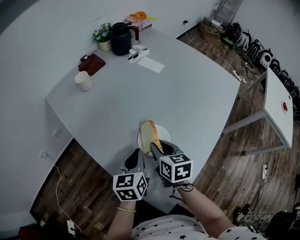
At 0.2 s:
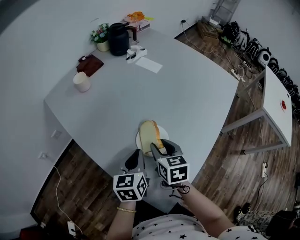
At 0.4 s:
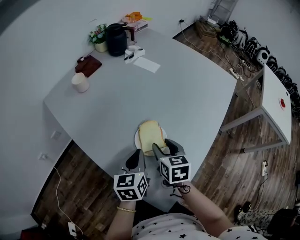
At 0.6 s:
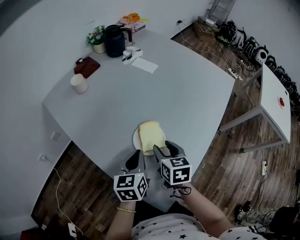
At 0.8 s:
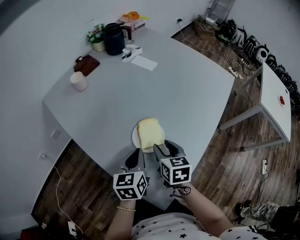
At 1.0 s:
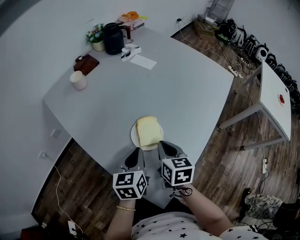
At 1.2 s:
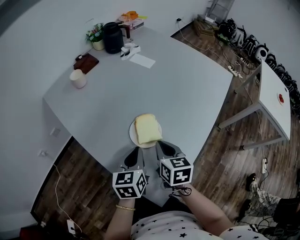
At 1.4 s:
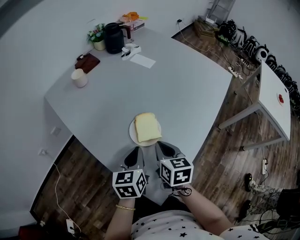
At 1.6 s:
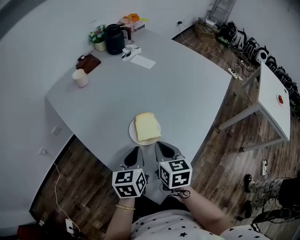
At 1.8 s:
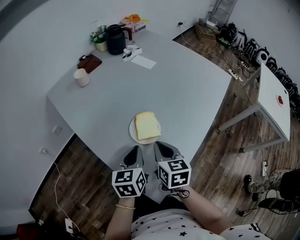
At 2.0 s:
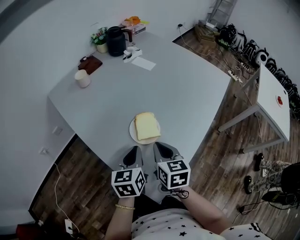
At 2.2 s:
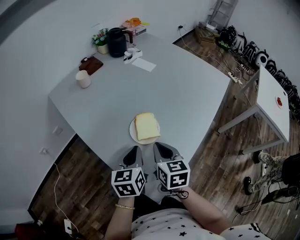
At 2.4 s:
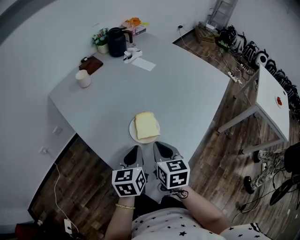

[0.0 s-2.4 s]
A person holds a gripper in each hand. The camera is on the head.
0.0 to 1.2 s: The right gripper ends up some 5 cm from where it was, and closes up; the left gripper shifts by about 5 cm.
1.2 to 2.4 s: The grippers make only small movements.

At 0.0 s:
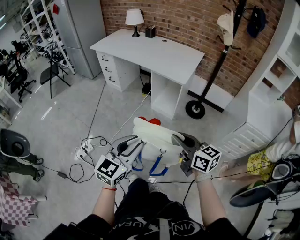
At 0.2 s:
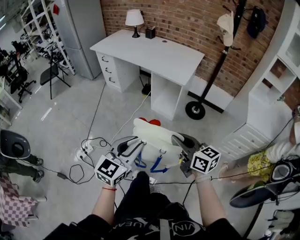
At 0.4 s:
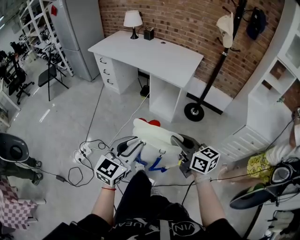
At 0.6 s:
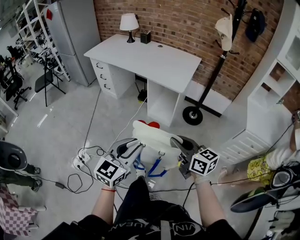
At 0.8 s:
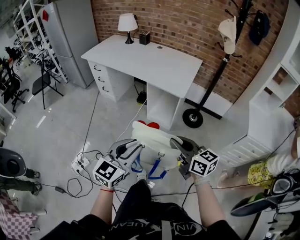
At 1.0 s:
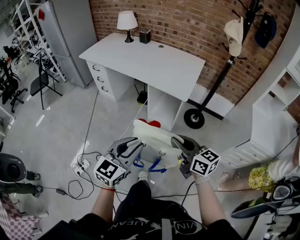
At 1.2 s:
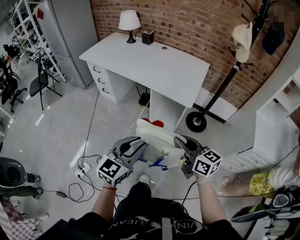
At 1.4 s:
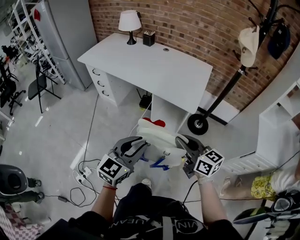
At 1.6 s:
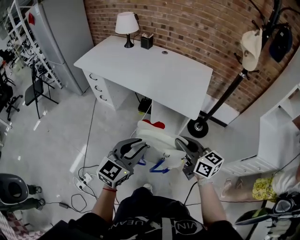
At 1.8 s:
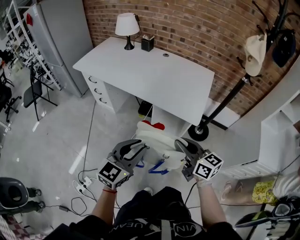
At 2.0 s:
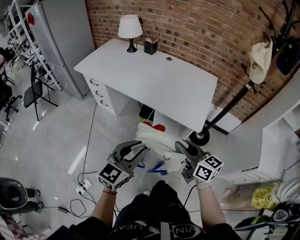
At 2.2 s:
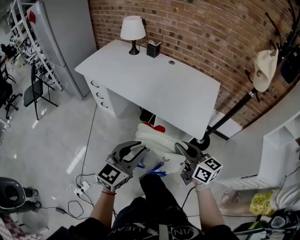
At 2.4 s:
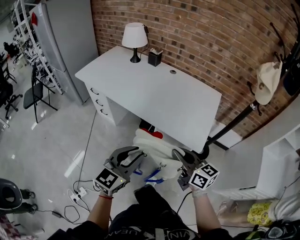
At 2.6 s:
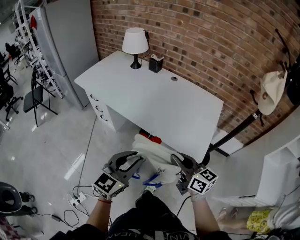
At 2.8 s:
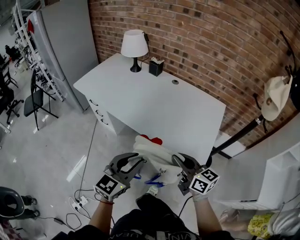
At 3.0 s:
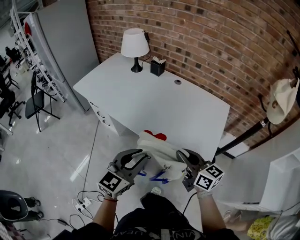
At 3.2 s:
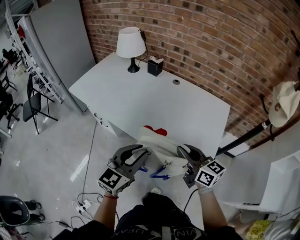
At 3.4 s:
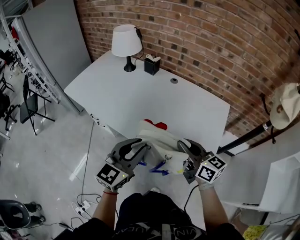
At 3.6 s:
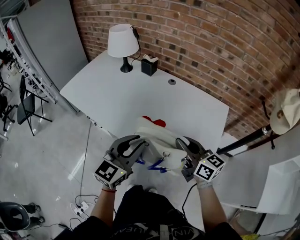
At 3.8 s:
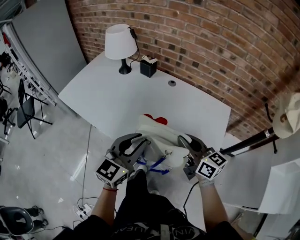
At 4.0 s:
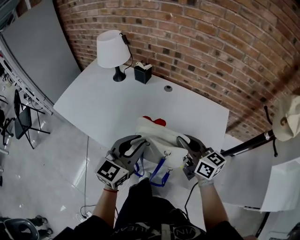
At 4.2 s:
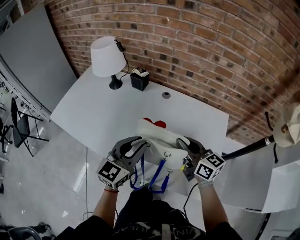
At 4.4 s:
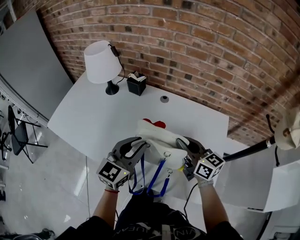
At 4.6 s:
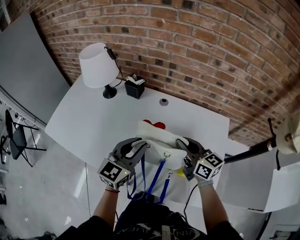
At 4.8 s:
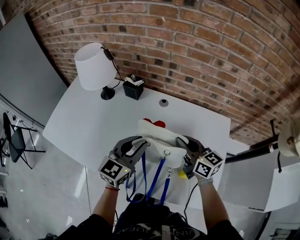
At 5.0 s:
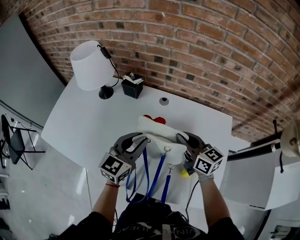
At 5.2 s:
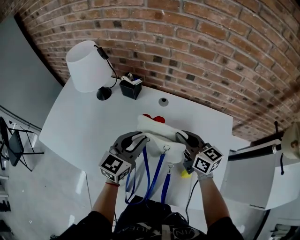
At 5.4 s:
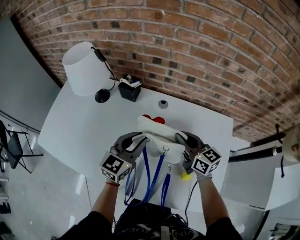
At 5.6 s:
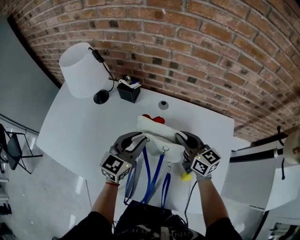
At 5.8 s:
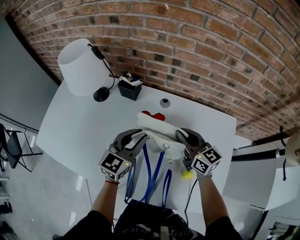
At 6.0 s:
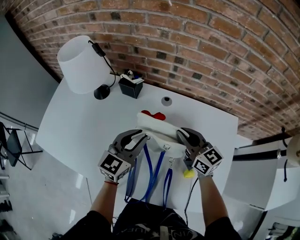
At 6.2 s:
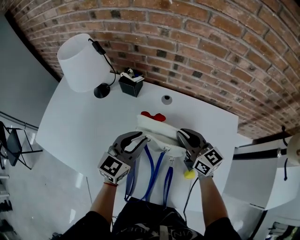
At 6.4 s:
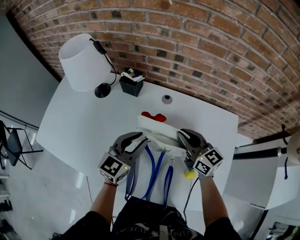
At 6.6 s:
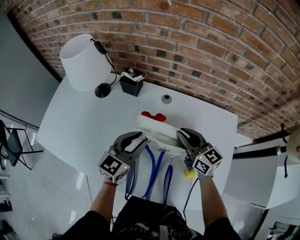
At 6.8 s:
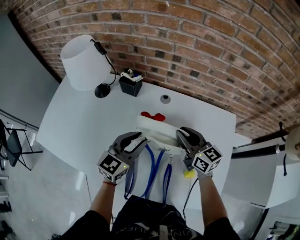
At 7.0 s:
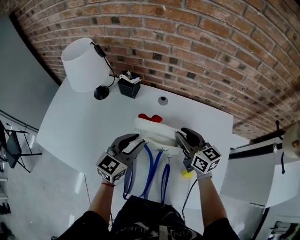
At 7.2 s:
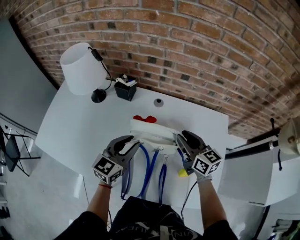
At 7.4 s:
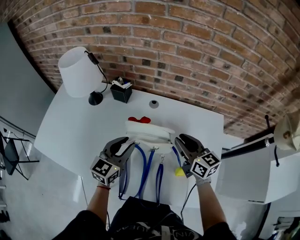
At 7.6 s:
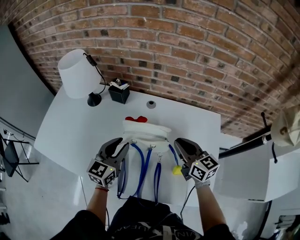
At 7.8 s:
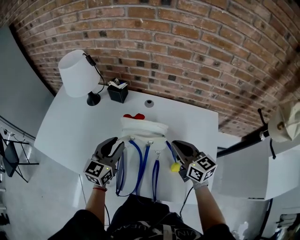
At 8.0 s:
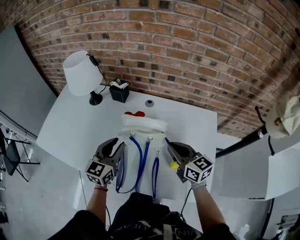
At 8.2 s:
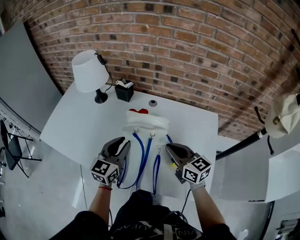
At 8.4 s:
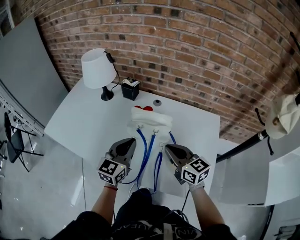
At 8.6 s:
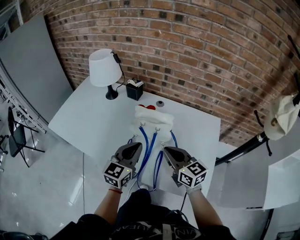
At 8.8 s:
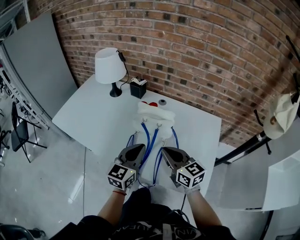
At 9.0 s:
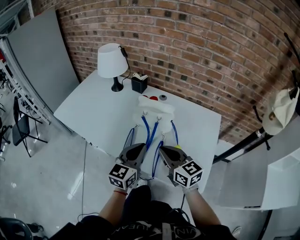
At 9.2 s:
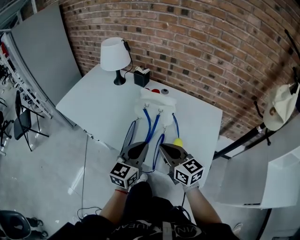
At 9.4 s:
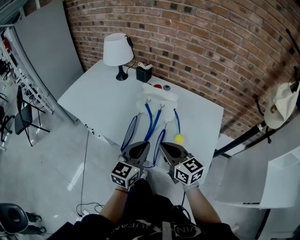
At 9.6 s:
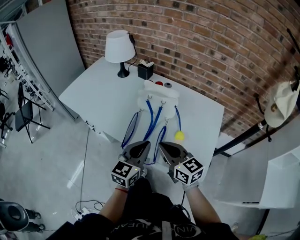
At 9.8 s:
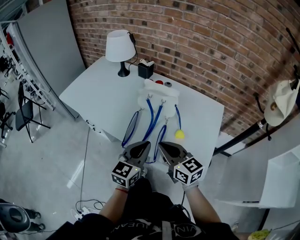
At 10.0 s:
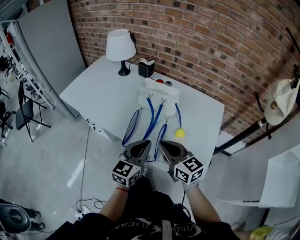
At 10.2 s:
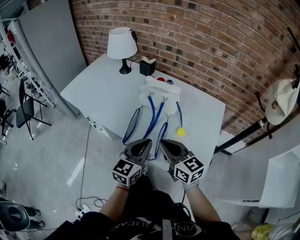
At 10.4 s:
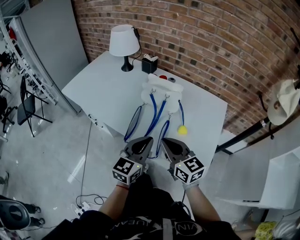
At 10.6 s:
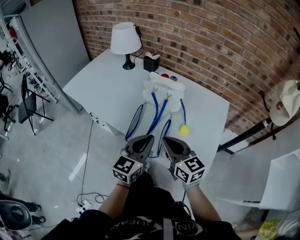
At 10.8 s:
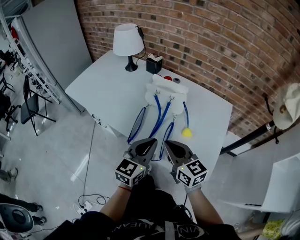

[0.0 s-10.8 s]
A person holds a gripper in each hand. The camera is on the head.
0.0 to 1.6 s: The two grippers go some 35 cm forward.
1.6 to 3.0 s: The two grippers go approximately 25 cm forward.
3.0 to 4.6 s: Both grippers travel together forward, some 35 cm.
4.6 to 6.2 s: The grippers both shift forward and downward by some 10 cm.
6.2 to 7.8 s: The right gripper goes roughly 10 cm backward and to the right. Meanwhile the left gripper heads backward, covering some 5 cm.
7.8 to 9.2 s: The left gripper travels backward by about 25 cm, and closes up. Meanwhile the right gripper moves backward and to the left, some 20 cm.
9.2 to 10.8 s: The grippers make only small movements.

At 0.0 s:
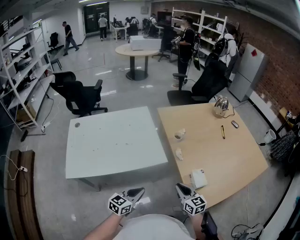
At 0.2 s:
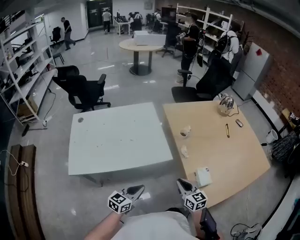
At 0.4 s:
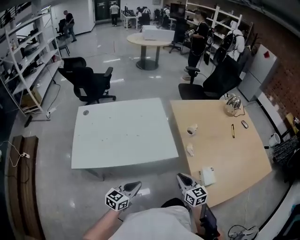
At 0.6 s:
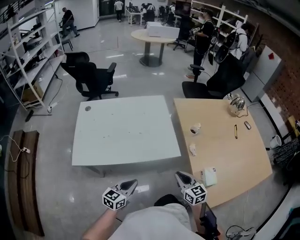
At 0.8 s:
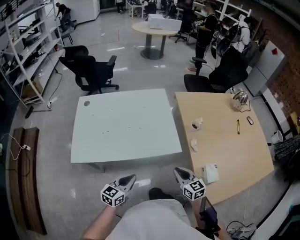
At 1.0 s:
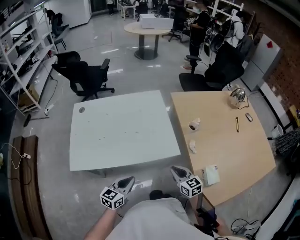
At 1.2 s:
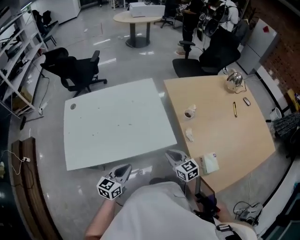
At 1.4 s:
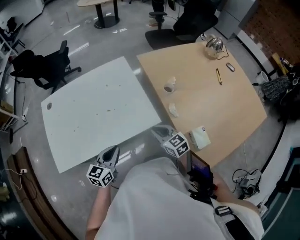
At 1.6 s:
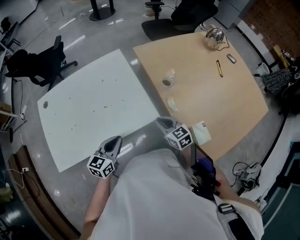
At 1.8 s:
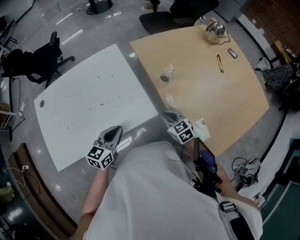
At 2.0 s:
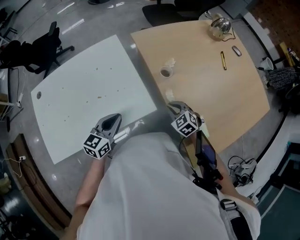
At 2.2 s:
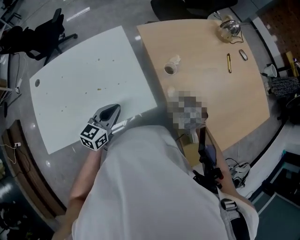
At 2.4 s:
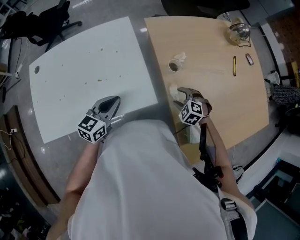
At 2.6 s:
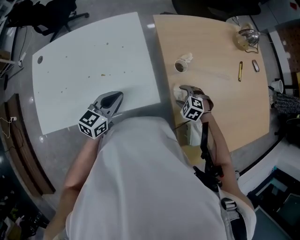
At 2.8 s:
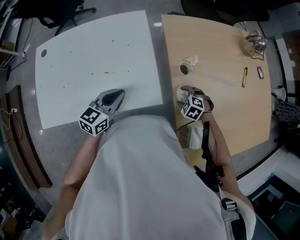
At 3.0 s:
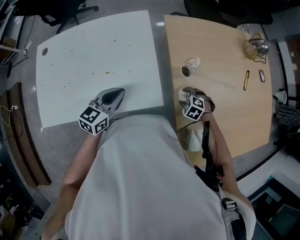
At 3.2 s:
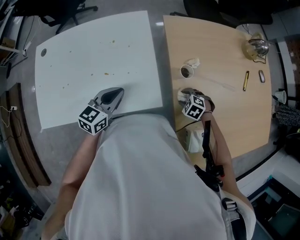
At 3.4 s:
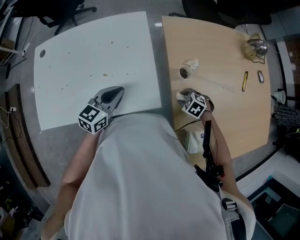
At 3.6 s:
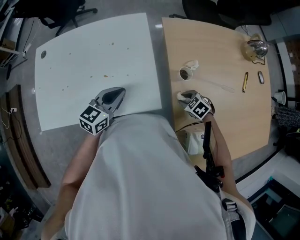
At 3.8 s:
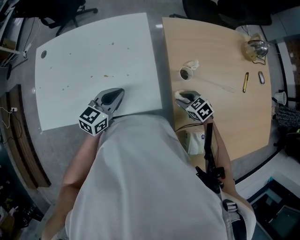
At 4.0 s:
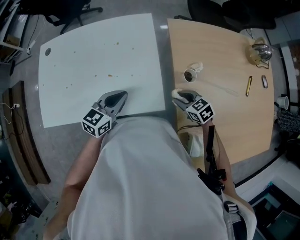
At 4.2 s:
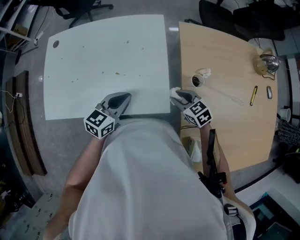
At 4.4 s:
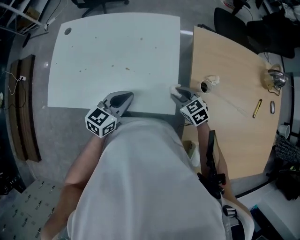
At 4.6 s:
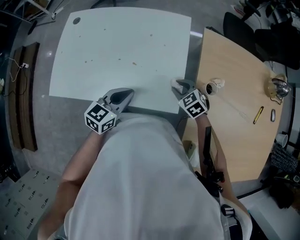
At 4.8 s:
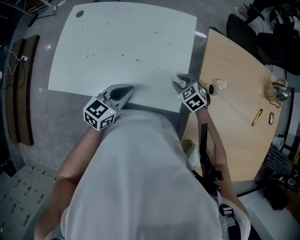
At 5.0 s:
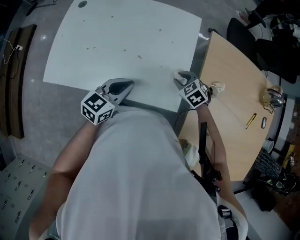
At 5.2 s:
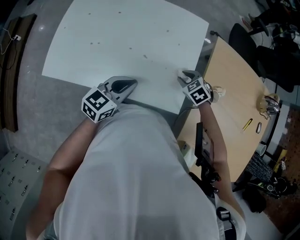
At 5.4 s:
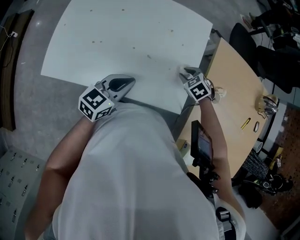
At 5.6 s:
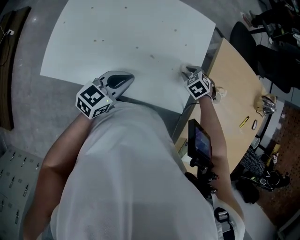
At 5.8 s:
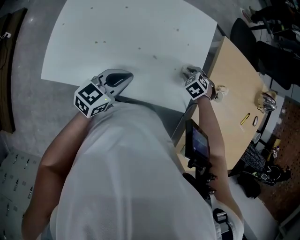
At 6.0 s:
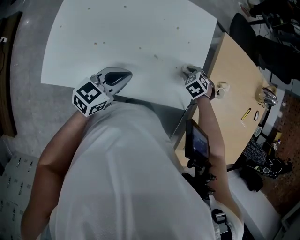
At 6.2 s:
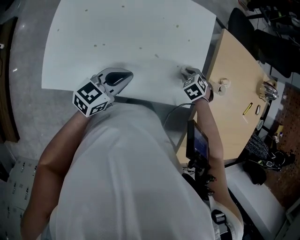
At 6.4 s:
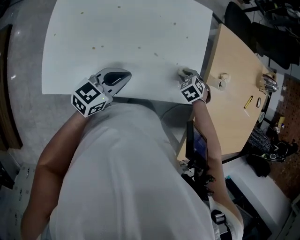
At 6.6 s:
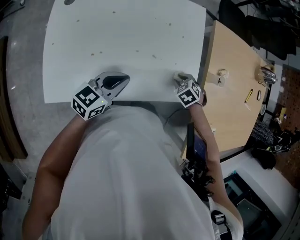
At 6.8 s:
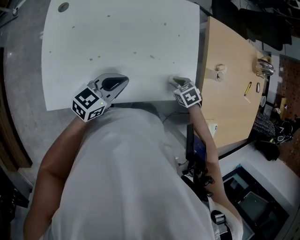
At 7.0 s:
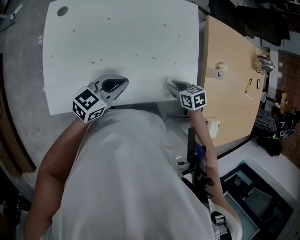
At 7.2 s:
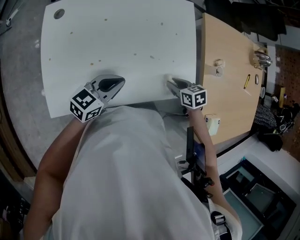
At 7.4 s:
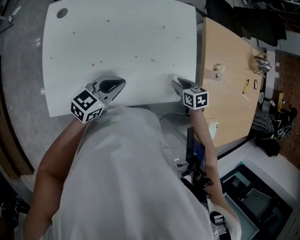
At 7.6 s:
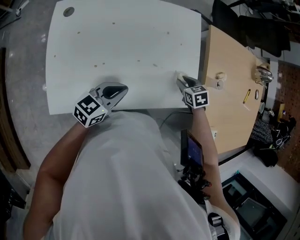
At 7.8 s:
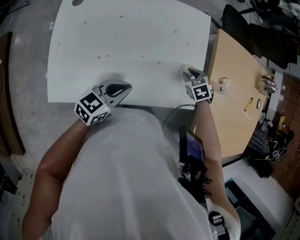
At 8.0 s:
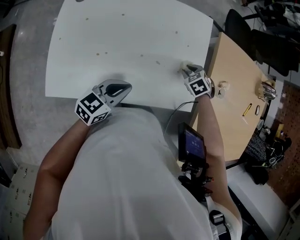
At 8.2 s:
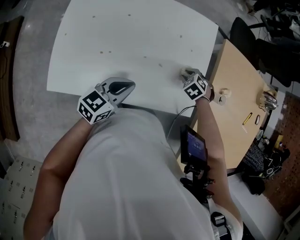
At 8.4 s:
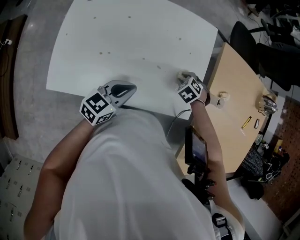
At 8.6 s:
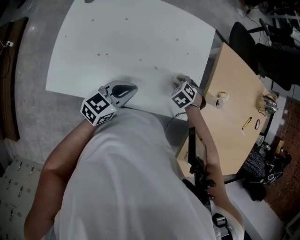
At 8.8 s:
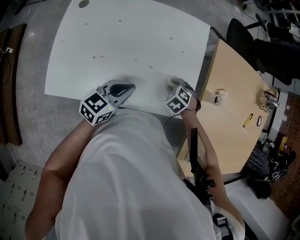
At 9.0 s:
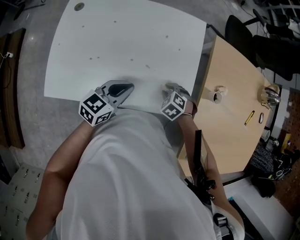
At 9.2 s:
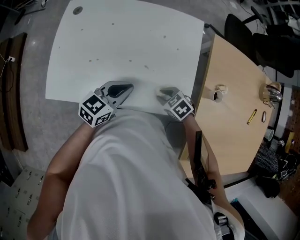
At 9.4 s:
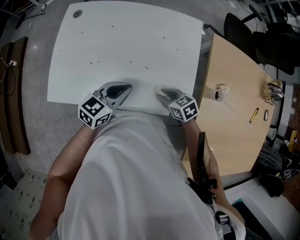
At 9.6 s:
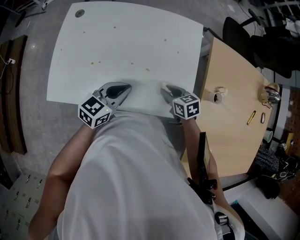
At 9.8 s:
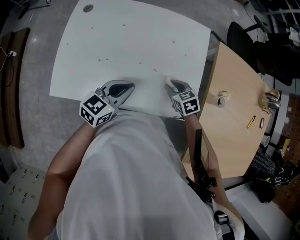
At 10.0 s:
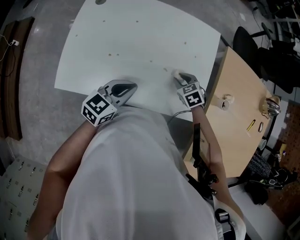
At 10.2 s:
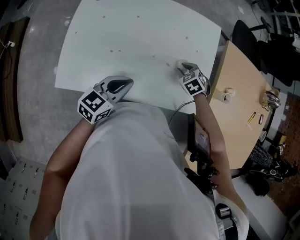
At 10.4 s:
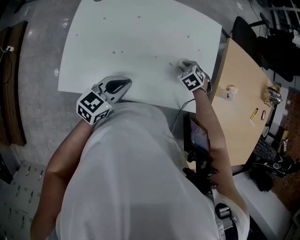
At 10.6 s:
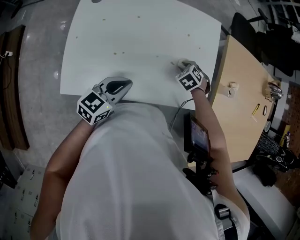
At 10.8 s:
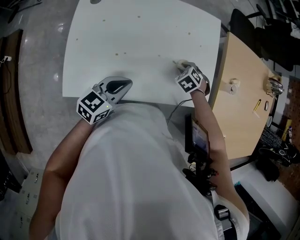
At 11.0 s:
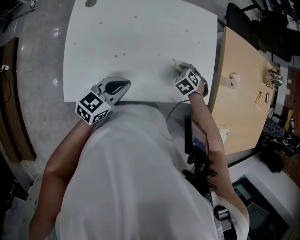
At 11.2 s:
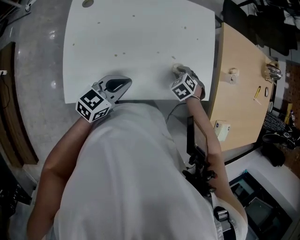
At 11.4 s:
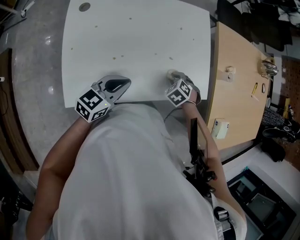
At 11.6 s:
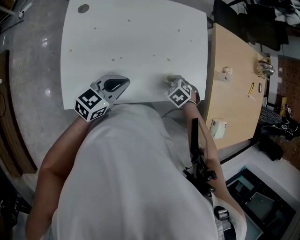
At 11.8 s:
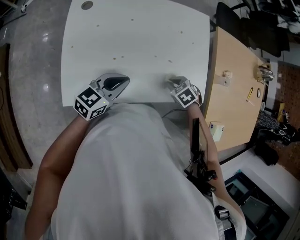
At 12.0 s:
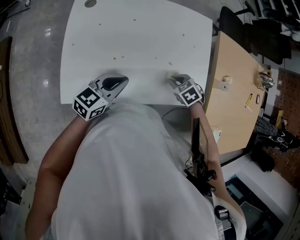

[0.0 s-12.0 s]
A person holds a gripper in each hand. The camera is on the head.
0.0 to 1.6 s: The left gripper is displaced forward and to the left by approximately 20 cm, while the right gripper travels forward by about 20 cm.
1.6 to 3.0 s: The right gripper ends up about 20 cm from where it was, tips its fingers downward by about 50 degrees, and opens its fingers; the left gripper moves roughly 10 cm.
3.0 to 4.4 s: The right gripper ends up approximately 15 cm from where it was, angles its fingers upward, by approximately 30 degrees, and closes.
4.4 to 6.0 s: The left gripper changes place by roughly 15 cm, while the right gripper shifts by some 10 cm, and angles its fingers downward, by some 30 degrees.
6.0 to 7.6 s: The right gripper swivels about 40 degrees.
7.6 to 9.0 s: The left gripper changes place by roughly 10 cm, while the right gripper moves roughly 5 cm, and rolls counterclockwise, seen from behind, by roughly 40 degrees.
9.0 to 10.4 s: The right gripper ends up about 10 cm from where it was. Meanwhile the left gripper shifts by approximately 10 cm.
10.4 to 12.0 s: The right gripper changes place by roughly 10 cm.
